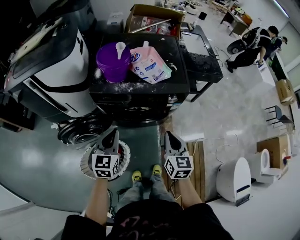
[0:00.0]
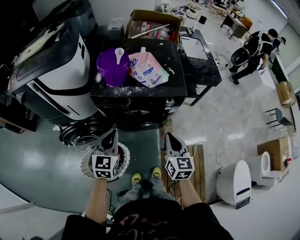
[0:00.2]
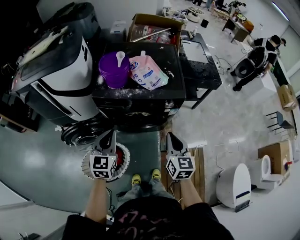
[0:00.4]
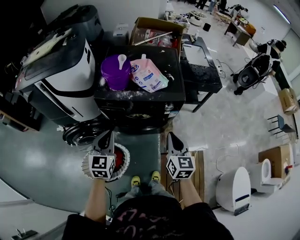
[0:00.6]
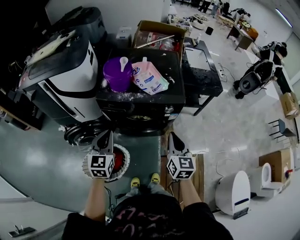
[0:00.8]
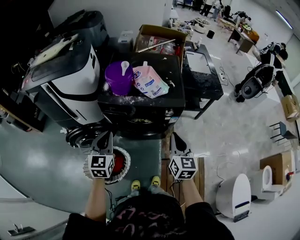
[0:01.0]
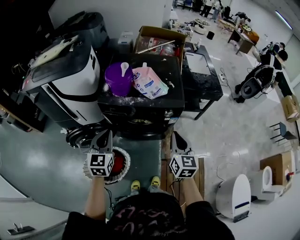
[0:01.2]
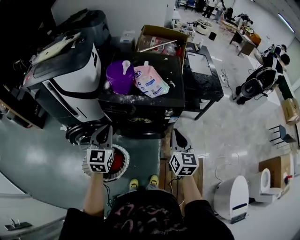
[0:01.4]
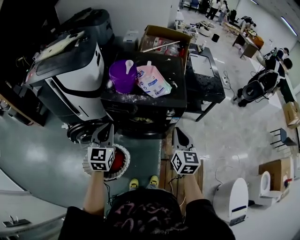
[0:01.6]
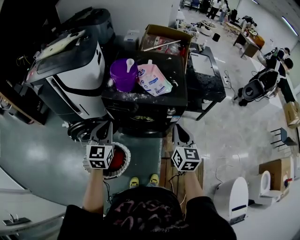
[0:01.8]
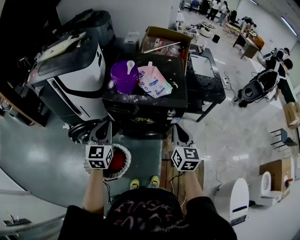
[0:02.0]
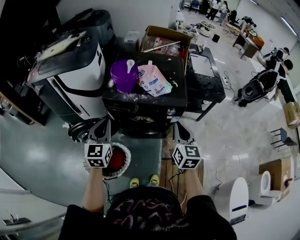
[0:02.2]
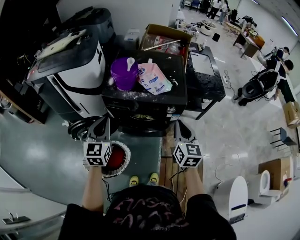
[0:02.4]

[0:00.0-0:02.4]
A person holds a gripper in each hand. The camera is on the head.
0.0 to 1.2 s: The left gripper is displaced upward by approximately 10 cm, while the right gripper is displaced upward and to the right by some 10 cm.
1.2 to 2.4 s: There are only small adjustments of the grippers.

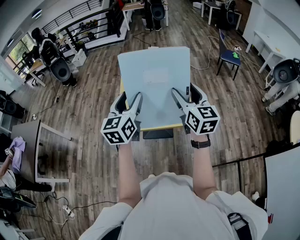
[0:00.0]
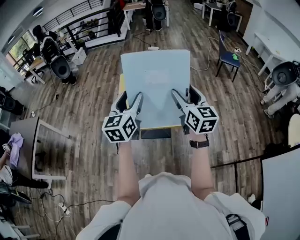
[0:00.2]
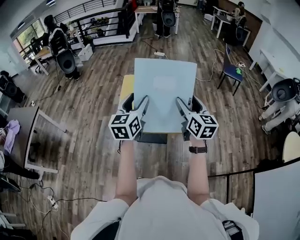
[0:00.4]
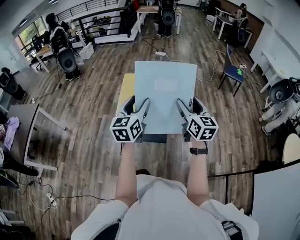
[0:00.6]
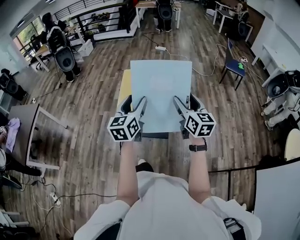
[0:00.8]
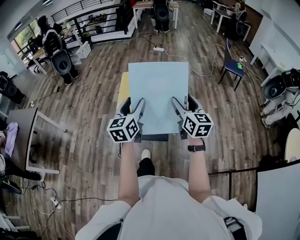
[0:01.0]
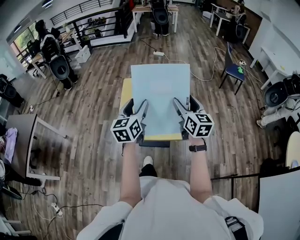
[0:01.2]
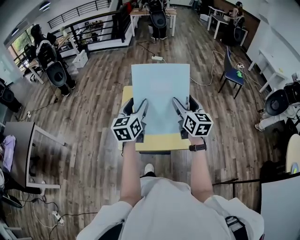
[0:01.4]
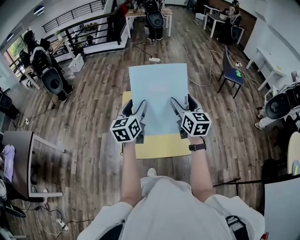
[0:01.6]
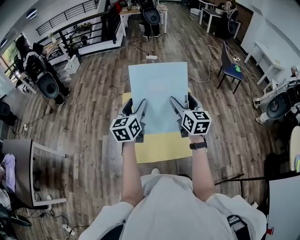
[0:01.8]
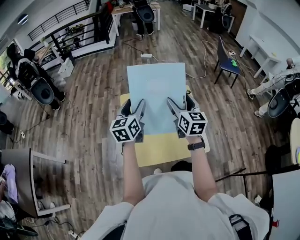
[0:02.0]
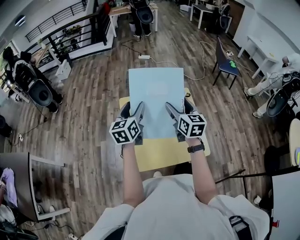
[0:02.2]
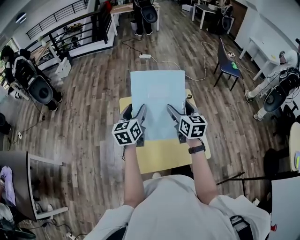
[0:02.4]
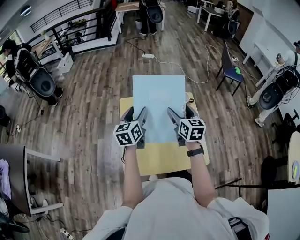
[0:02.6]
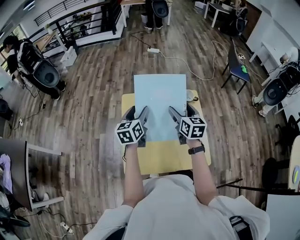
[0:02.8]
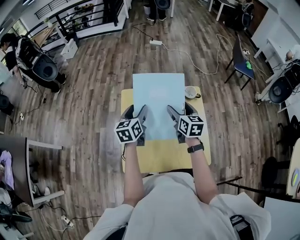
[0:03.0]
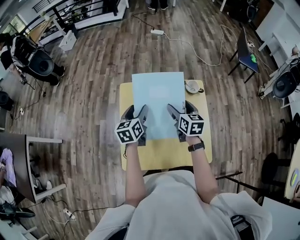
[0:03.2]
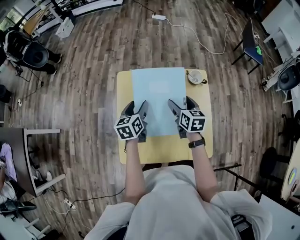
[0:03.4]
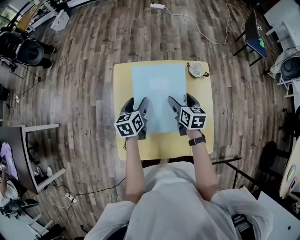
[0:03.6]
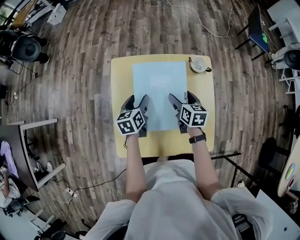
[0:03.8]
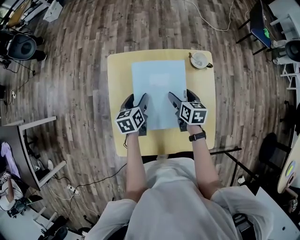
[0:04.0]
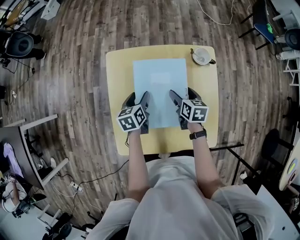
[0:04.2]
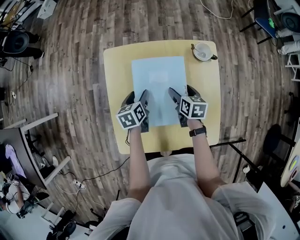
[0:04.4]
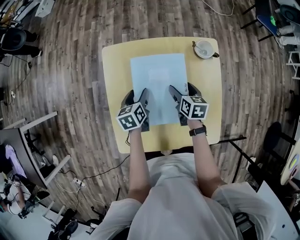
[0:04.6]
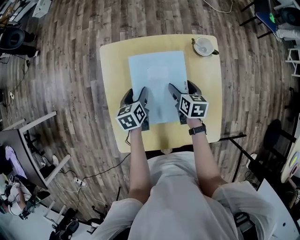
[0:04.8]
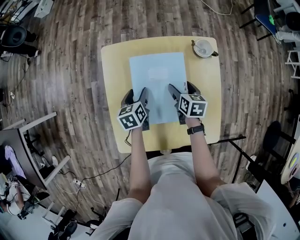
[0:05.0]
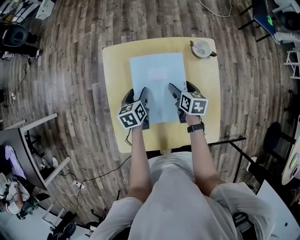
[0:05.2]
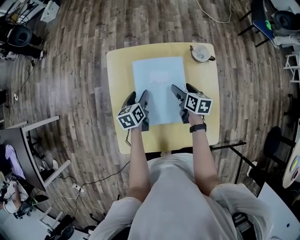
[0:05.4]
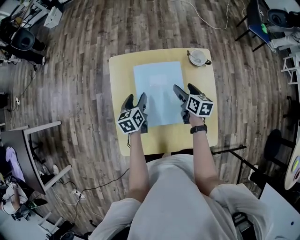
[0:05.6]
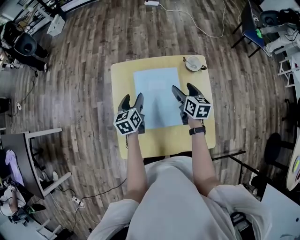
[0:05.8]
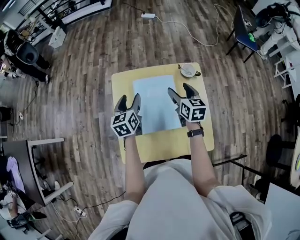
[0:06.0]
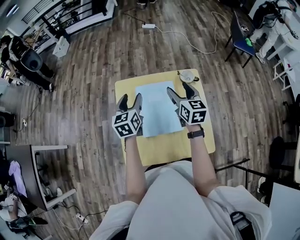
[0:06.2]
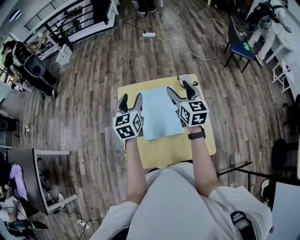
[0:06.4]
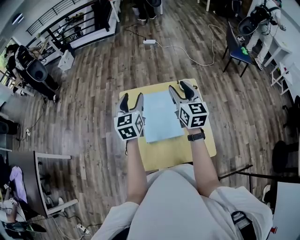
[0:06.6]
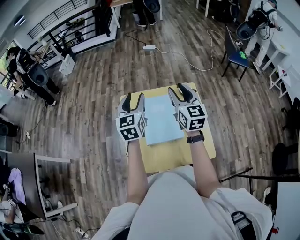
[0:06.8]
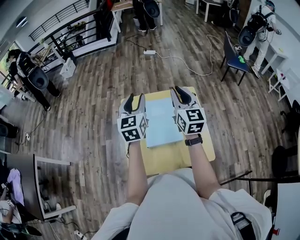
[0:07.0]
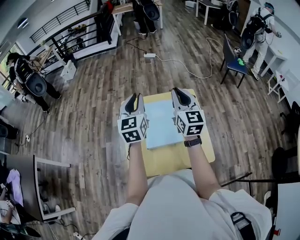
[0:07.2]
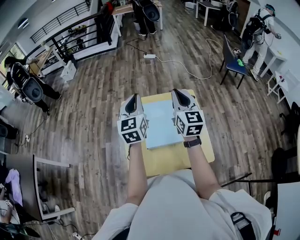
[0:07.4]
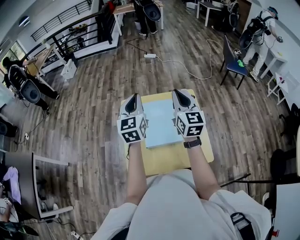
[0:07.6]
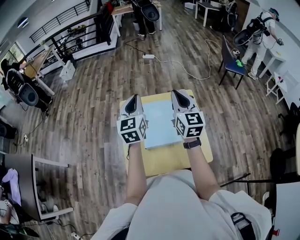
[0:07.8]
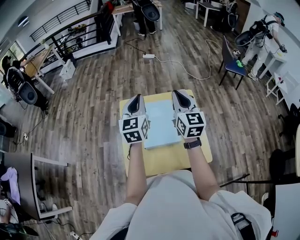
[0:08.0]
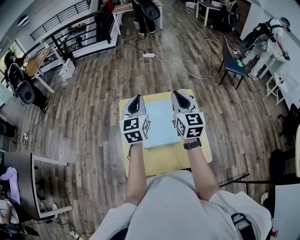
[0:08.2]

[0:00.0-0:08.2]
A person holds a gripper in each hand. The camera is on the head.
0.0 to 1.6 s: The right gripper shifts some 20 cm forward. Meanwhile the left gripper moves forward and downward, approximately 20 cm.
1.6 to 3.2 s: Both grippers travel together downward and forward, about 25 cm. The right gripper turns by approximately 20 degrees, while the left gripper changes its angle by about 20 degrees.
3.2 to 5.0 s: The grippers both shift downward by approximately 20 cm. The right gripper changes its angle by about 20 degrees, while the left gripper turns by some 20 degrees.
5.0 to 6.6 s: The two grippers go some 30 cm upward. The left gripper angles its fingers upward, by some 30 degrees. The right gripper tips its fingers upward by roughly 40 degrees.
6.6 to 8.2 s: The right gripper moves about 5 cm, and closes its fingers. Meanwhile the left gripper shifts by some 5 cm, and closes.

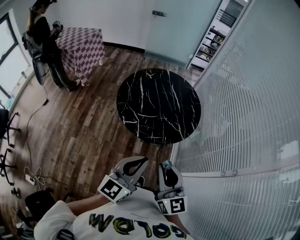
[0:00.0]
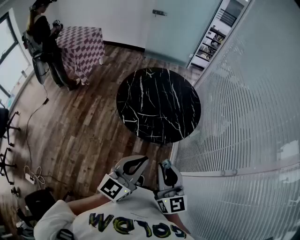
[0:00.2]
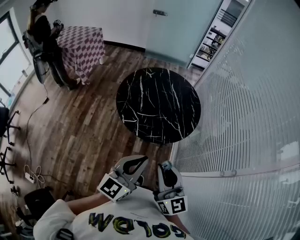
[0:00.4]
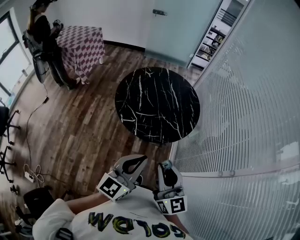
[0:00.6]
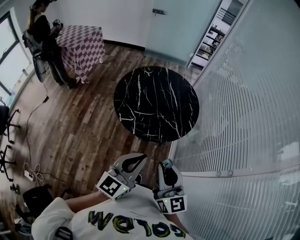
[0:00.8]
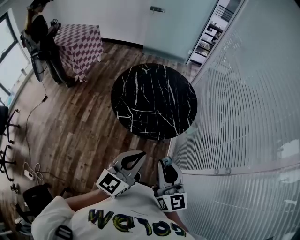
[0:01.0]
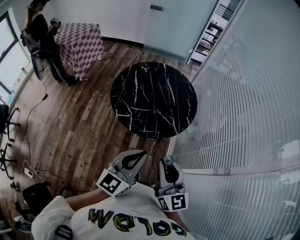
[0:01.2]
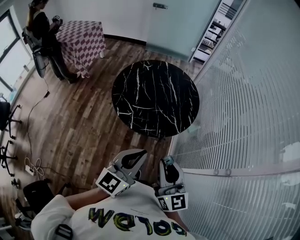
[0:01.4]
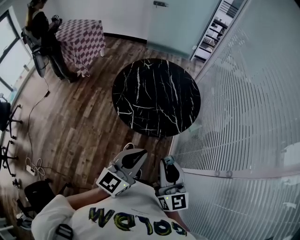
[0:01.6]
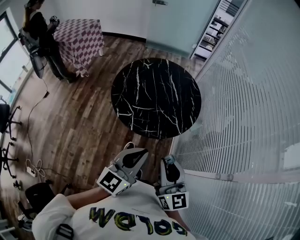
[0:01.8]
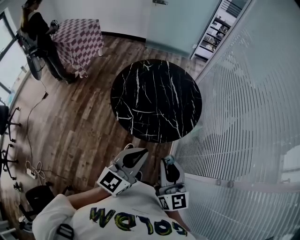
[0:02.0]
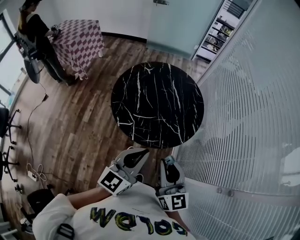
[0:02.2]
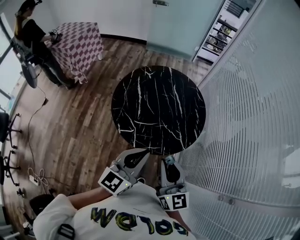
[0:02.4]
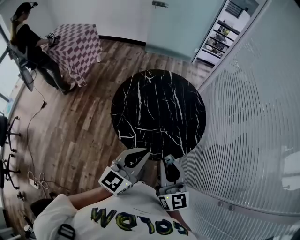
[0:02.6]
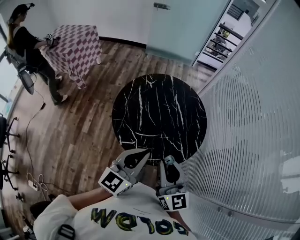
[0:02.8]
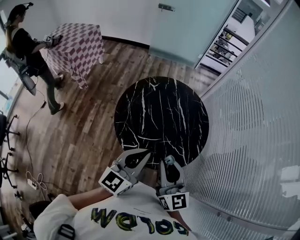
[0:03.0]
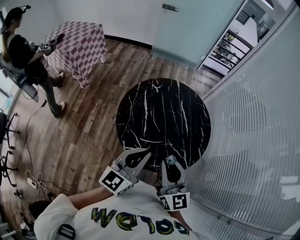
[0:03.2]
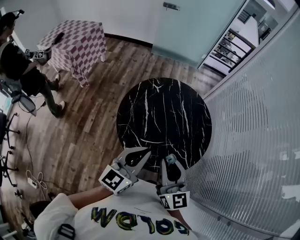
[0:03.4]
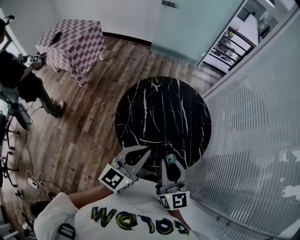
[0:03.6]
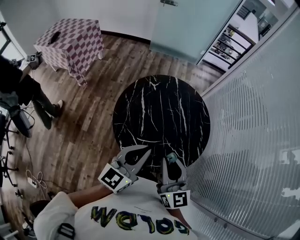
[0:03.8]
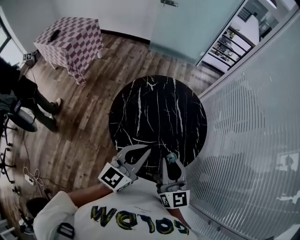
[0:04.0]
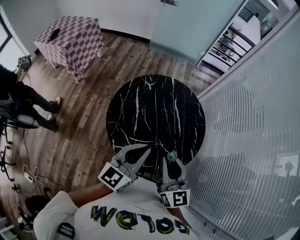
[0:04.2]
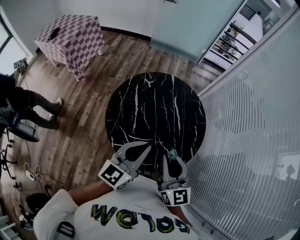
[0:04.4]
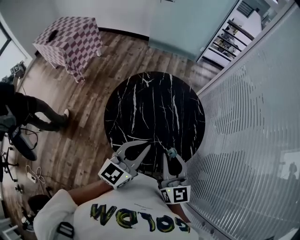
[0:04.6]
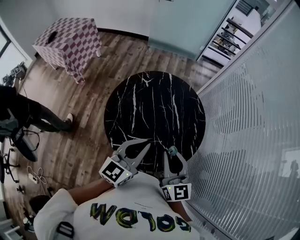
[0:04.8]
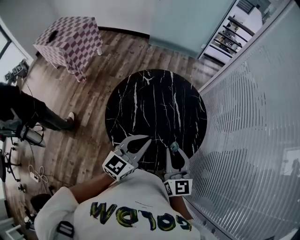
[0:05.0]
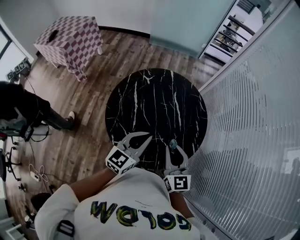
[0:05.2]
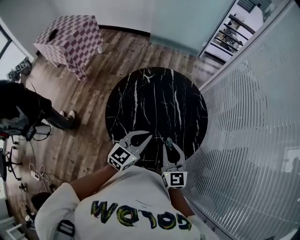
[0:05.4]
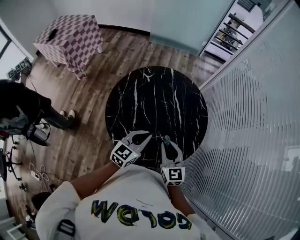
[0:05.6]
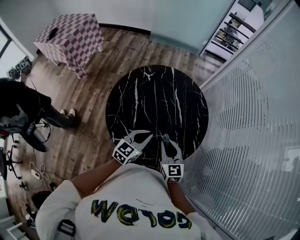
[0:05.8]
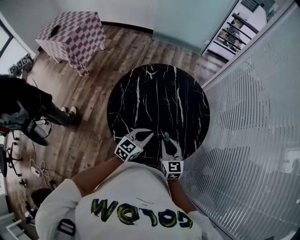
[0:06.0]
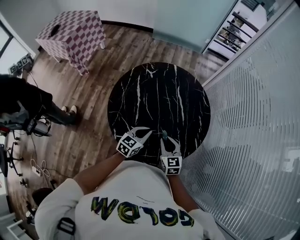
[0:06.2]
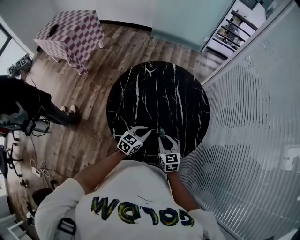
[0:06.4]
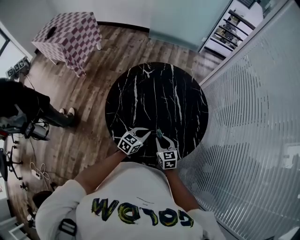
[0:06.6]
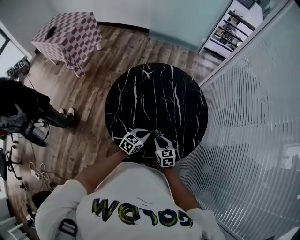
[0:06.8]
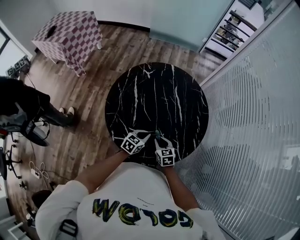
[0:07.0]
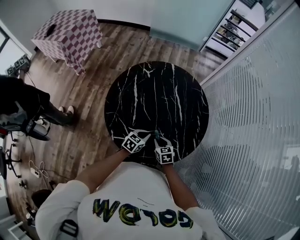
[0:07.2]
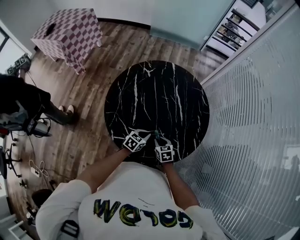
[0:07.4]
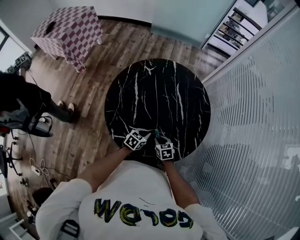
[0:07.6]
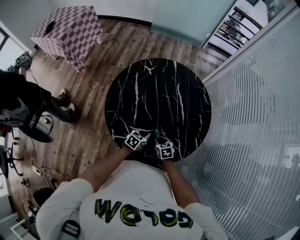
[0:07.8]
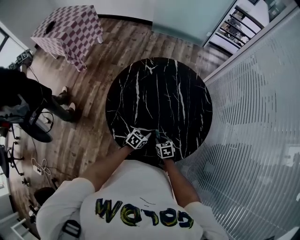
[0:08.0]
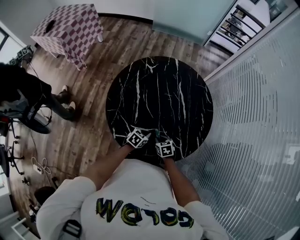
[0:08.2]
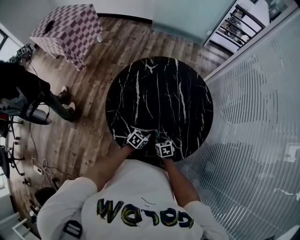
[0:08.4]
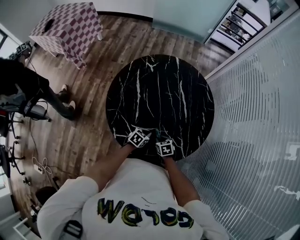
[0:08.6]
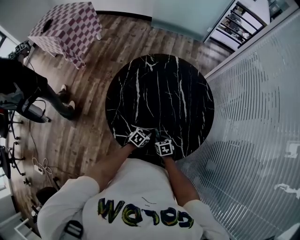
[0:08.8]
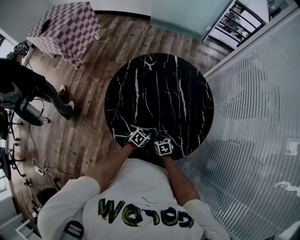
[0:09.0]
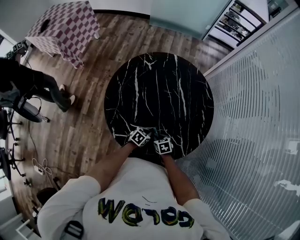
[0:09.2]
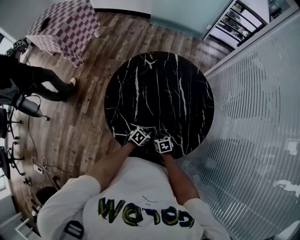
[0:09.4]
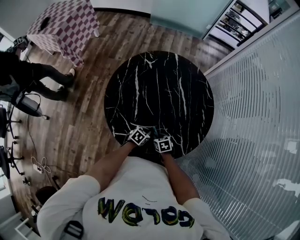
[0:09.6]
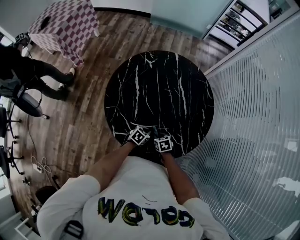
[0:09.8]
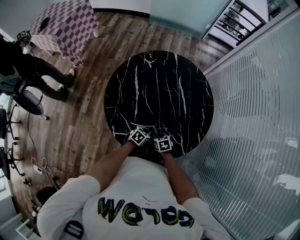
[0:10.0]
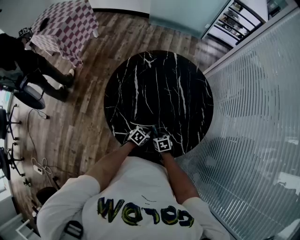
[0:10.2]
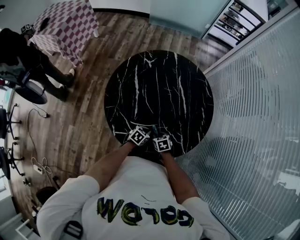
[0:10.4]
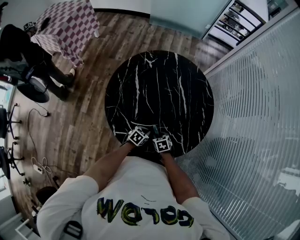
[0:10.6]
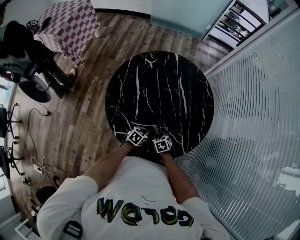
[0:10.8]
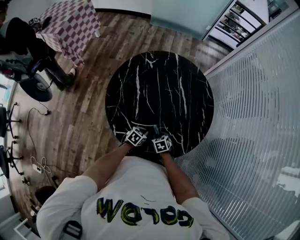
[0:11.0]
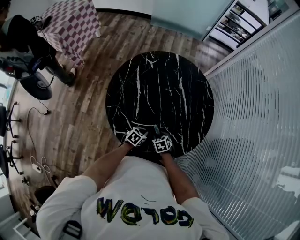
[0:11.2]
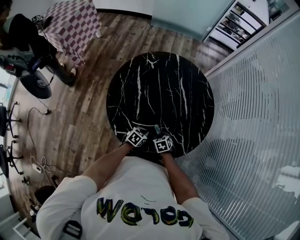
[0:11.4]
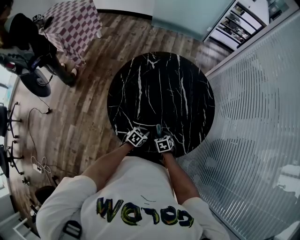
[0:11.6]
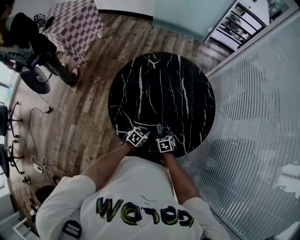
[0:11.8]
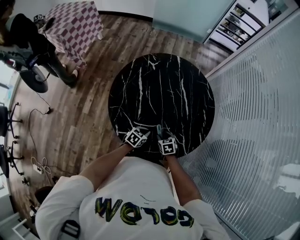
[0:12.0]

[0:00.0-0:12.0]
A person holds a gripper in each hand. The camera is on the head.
0.0 to 1.6 s: Both grippers move to the right, some 5 cm.
1.6 to 3.0 s: Both grippers travel together forward and to the left, approximately 25 cm.
3.0 to 4.4 s: The two grippers go roughly 10 cm forward and to the right.
4.4 to 6.0 s: The grippers both shift downward by approximately 20 cm. The right gripper turns by approximately 20 degrees; the left gripper rotates approximately 20 degrees.
6.0 to 7.6 s: The grippers both shift downward by roughly 20 cm. The left gripper swivels roughly 30 degrees, while the right gripper points its fingers some 30 degrees further downward.
7.6 to 9.0 s: The left gripper travels downward by roughly 5 cm, while the right gripper changes place by approximately 5 cm.
9.0 to 10.4 s: The grippers stay close to where they were, moving slightly.
10.4 to 12.0 s: The right gripper opens; the left gripper moves about 5 cm.

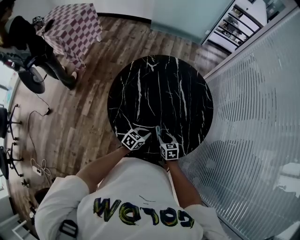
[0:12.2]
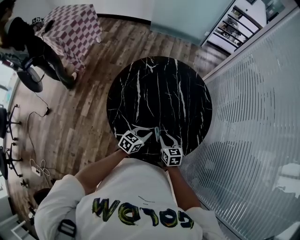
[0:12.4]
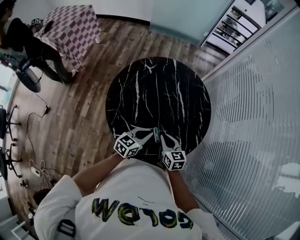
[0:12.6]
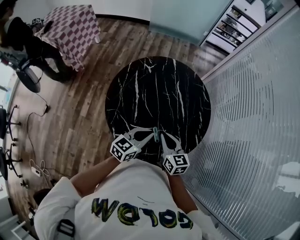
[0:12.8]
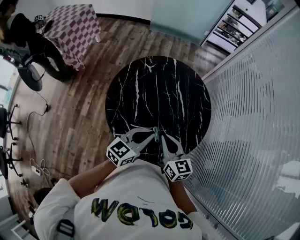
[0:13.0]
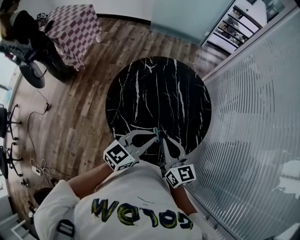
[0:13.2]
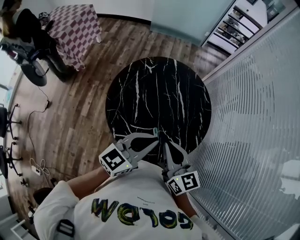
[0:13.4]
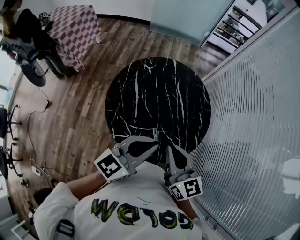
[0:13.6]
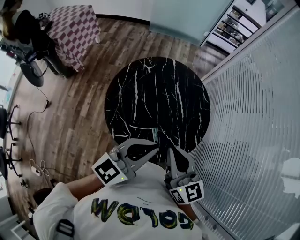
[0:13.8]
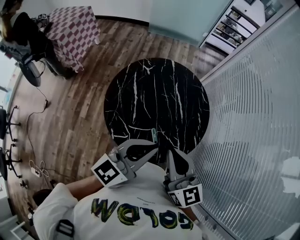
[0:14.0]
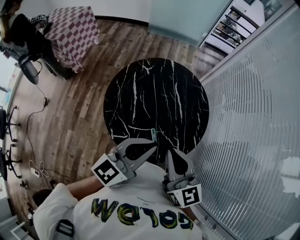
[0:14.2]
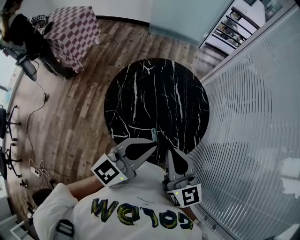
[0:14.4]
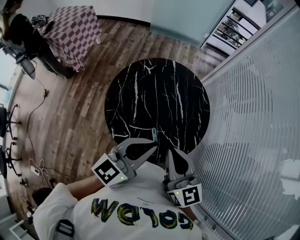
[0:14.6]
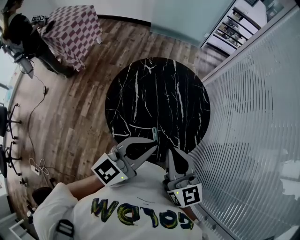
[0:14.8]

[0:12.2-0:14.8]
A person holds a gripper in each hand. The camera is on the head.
12.2 to 13.4 s: Both grippers travel together upward, approximately 35 cm. The right gripper angles its fingers upward, by approximately 40 degrees, and closes its fingers; the left gripper tips its fingers upward by about 30 degrees.
13.4 to 14.8 s: Both grippers move upward, approximately 5 cm.
